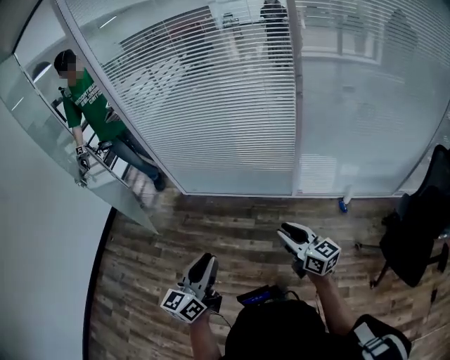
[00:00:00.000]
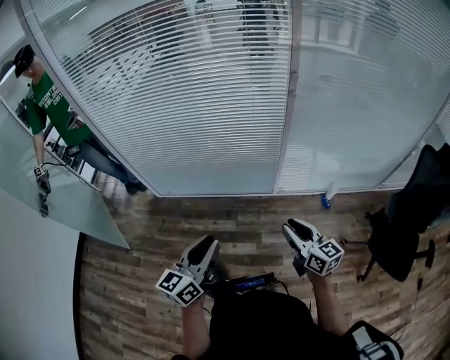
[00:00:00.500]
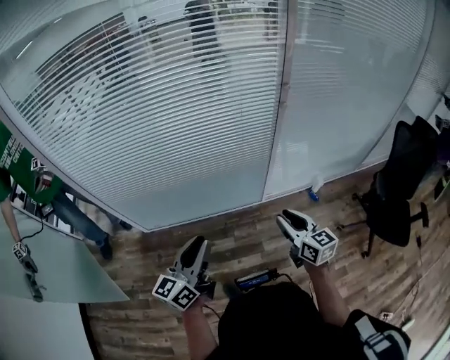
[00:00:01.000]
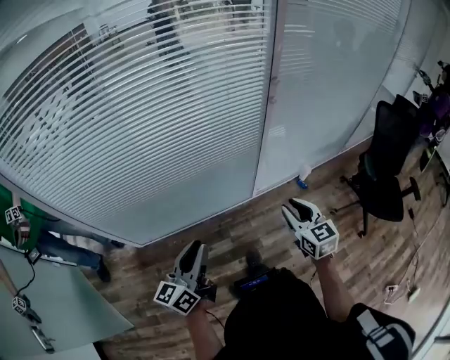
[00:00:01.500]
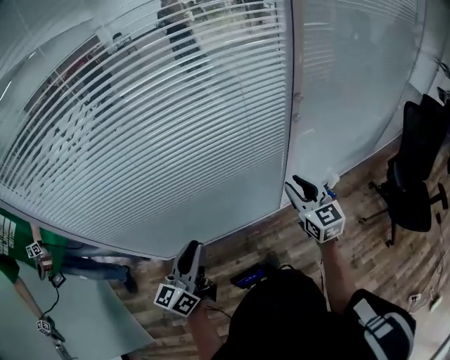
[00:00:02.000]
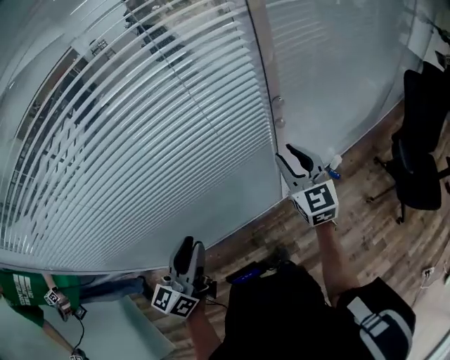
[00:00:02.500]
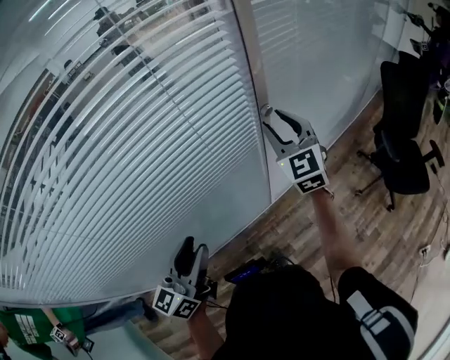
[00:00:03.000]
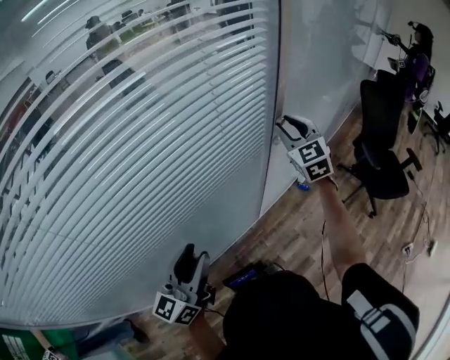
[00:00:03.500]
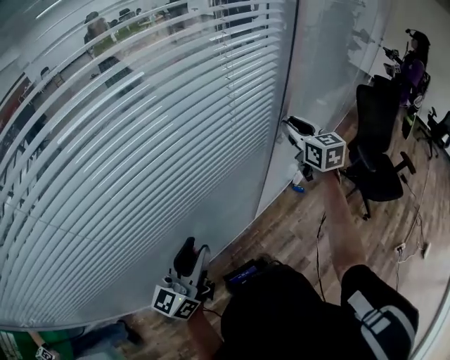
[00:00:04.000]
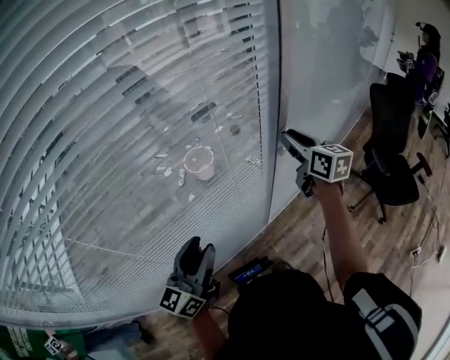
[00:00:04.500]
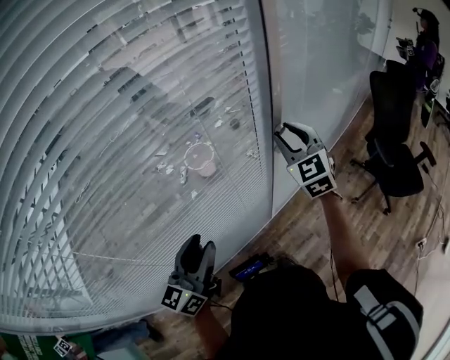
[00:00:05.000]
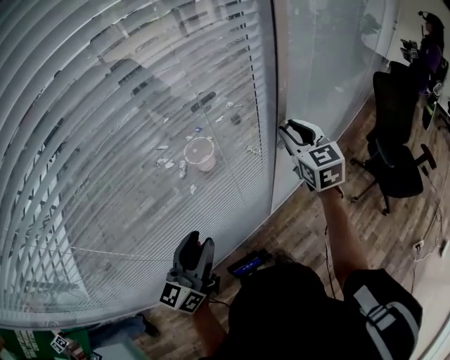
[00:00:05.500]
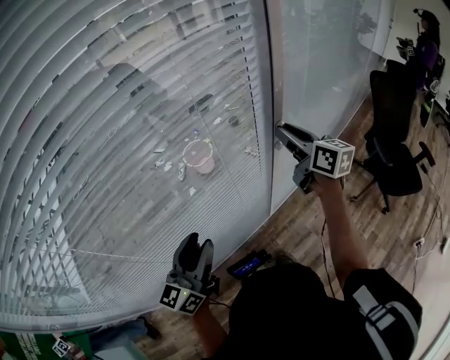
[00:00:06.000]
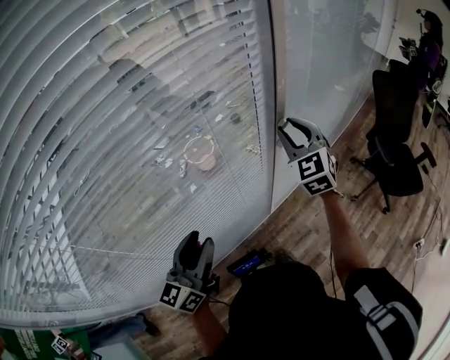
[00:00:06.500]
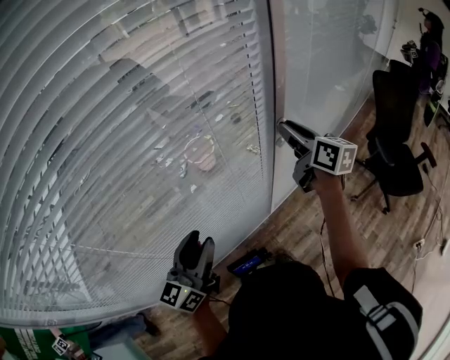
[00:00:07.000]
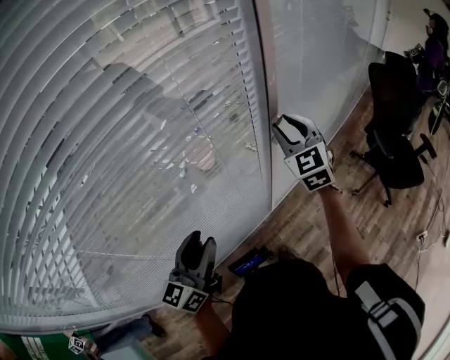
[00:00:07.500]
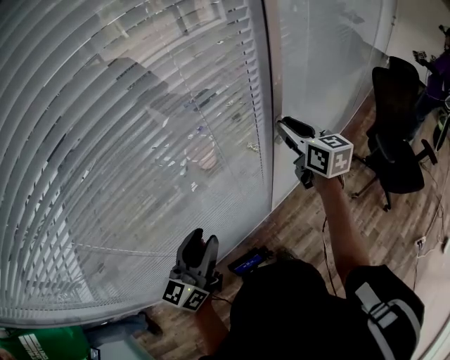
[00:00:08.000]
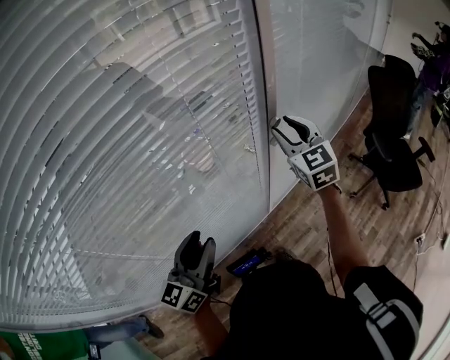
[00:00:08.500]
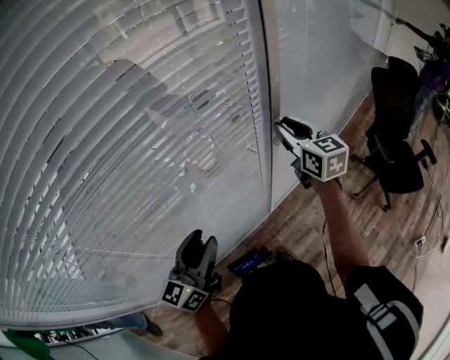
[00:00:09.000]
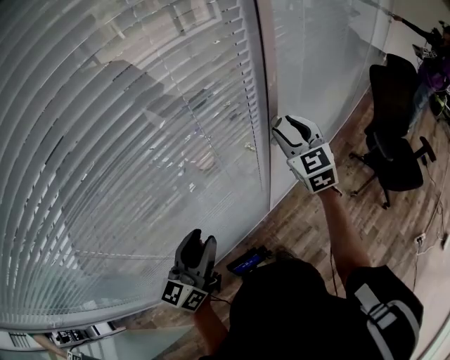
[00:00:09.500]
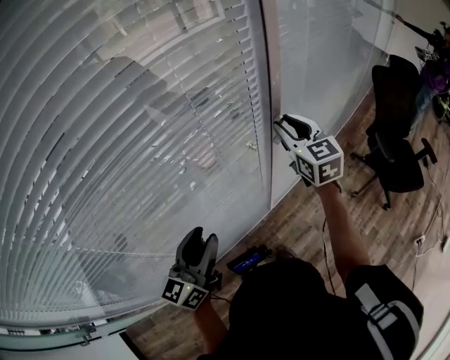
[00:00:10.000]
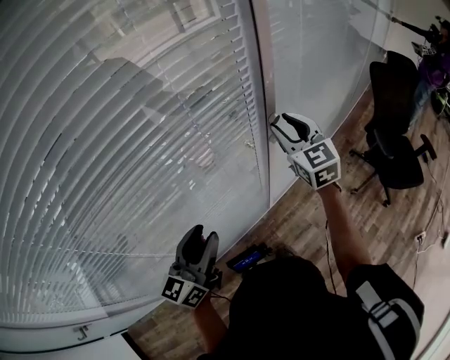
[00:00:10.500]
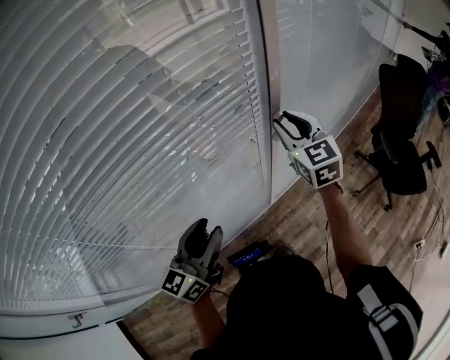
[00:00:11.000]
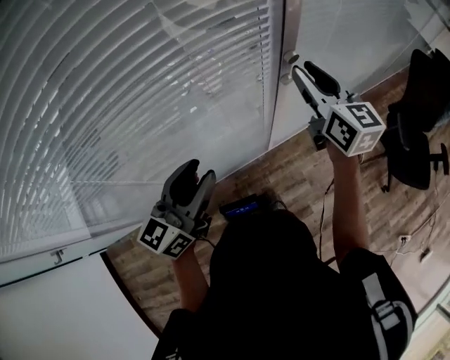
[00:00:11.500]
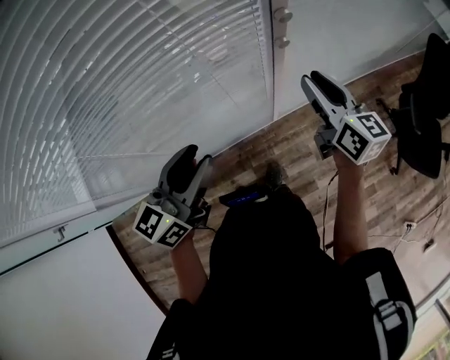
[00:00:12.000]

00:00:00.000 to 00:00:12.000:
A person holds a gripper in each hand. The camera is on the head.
00:00:00.000 to 00:00:02.000: Both grippers are carried about 50 cm. The right gripper swivels some 50 degrees; the left gripper swivels some 30 degrees.
00:00:02.000 to 00:00:04.000: The left gripper ends up approximately 15 cm from where it was, and rotates some 20 degrees; the right gripper moves some 25 cm, and turns by about 20 degrees.
00:00:04.000 to 00:00:06.000: The left gripper ends up roughly 5 cm from where it was, while the right gripper swivels roughly 30 degrees.
00:00:10.000 to 00:00:12.000: The right gripper moves downward, backward and to the right, some 15 cm, and changes its angle by some 30 degrees, while the left gripper travels to the right by roughly 10 cm.

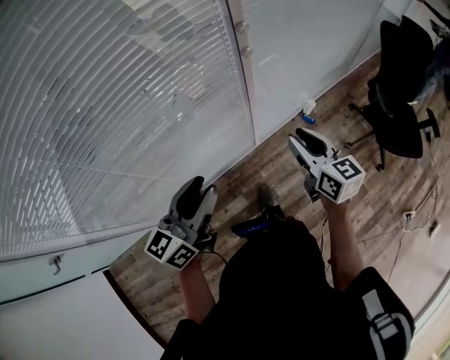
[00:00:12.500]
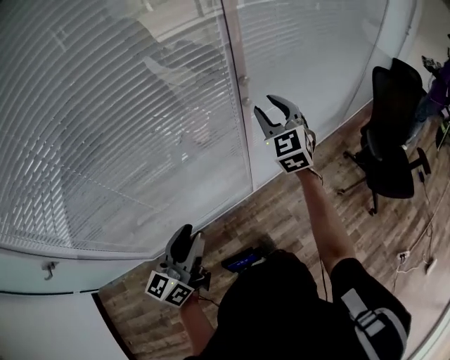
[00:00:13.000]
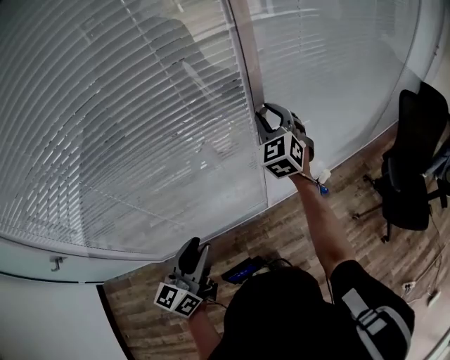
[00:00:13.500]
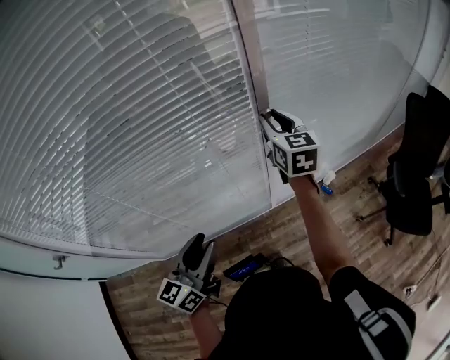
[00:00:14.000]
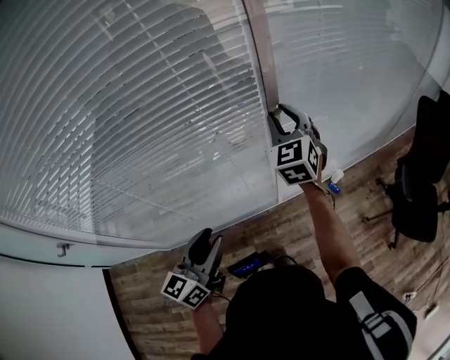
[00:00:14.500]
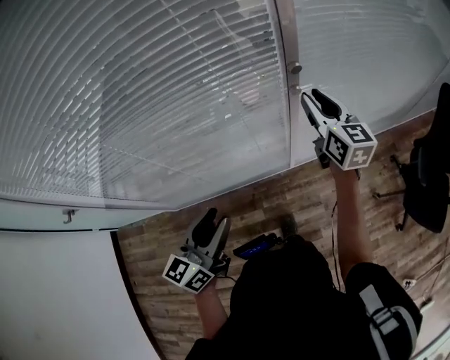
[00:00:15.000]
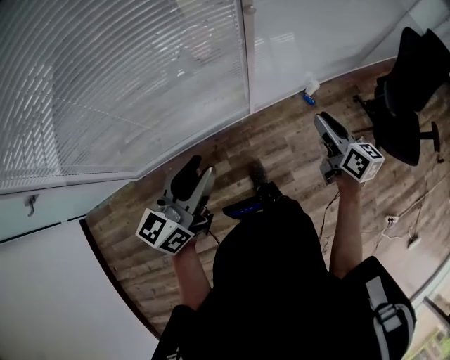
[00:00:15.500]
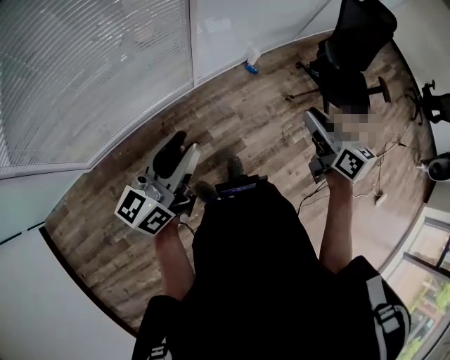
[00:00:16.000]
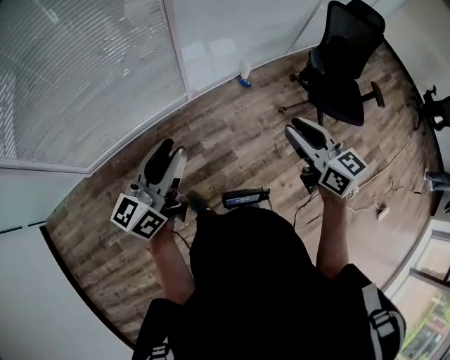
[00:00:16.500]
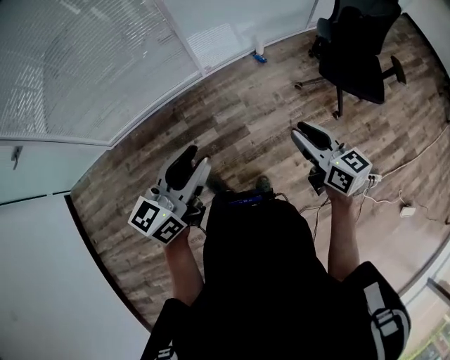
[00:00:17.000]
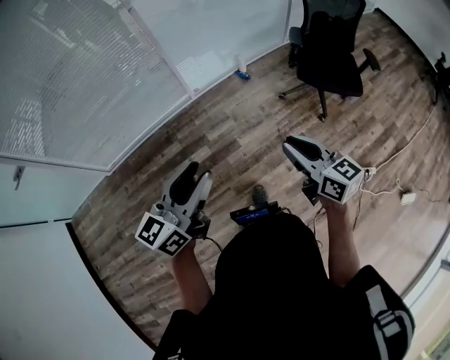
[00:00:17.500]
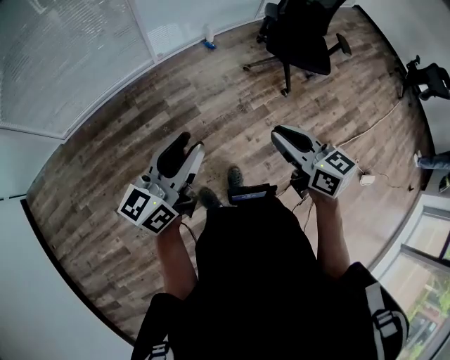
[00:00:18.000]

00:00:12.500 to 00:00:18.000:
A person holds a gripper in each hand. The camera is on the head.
00:00:12.500 to 00:00:14.500: The left gripper swivels about 20 degrees, while the right gripper heads forward and upward, covering some 25 cm, and rolls counterclockwise, seen from behind, by roughly 40 degrees.
00:00:14.500 to 00:00:16.000: The left gripper travels backward and to the right by approximately 25 cm, and turns by roughly 30 degrees; the right gripper heads backward and to the right, covering some 50 cm, and rotates around the line of its fingers by approximately 50 degrees, clockwise from behind.
00:00:16.000 to 00:00:18.000: Both grippers are carried backward and to the right, approximately 40 cm.

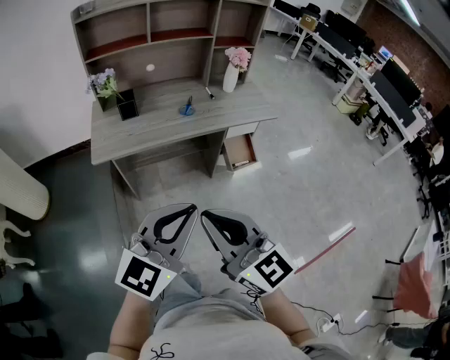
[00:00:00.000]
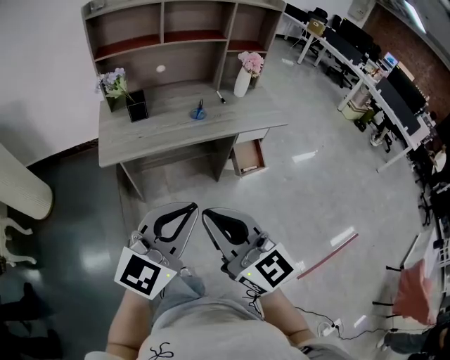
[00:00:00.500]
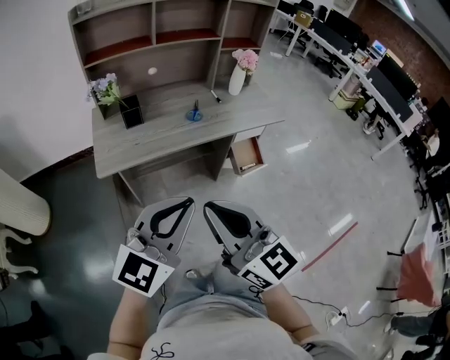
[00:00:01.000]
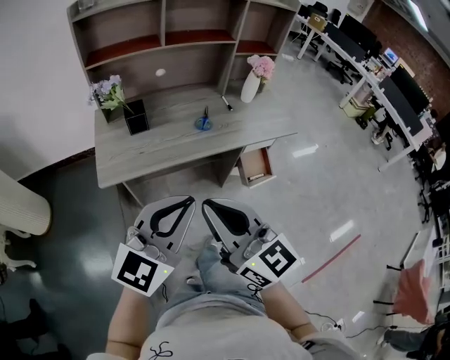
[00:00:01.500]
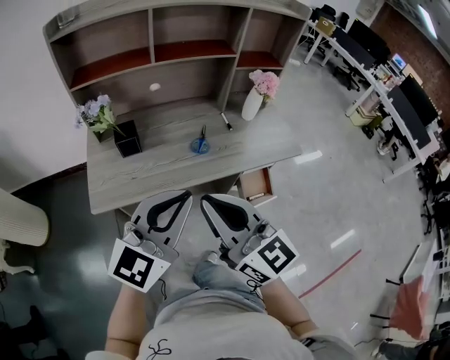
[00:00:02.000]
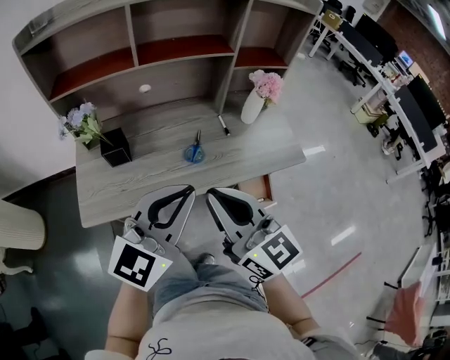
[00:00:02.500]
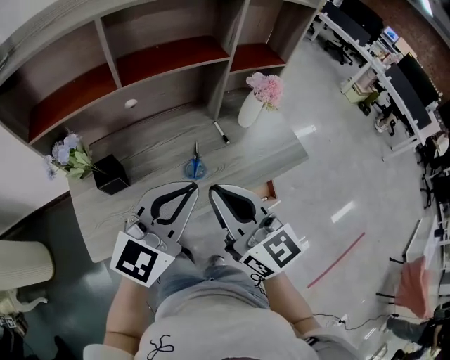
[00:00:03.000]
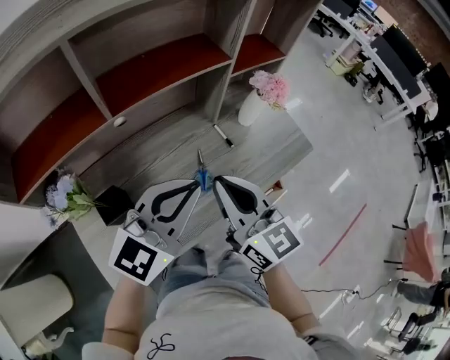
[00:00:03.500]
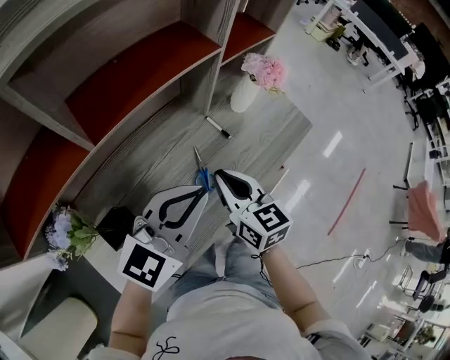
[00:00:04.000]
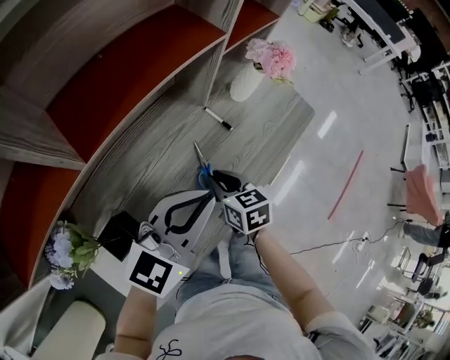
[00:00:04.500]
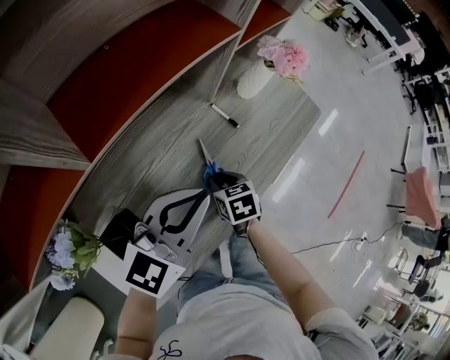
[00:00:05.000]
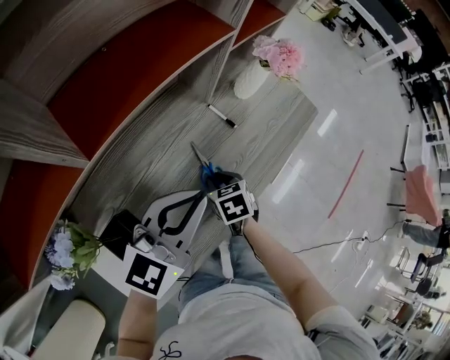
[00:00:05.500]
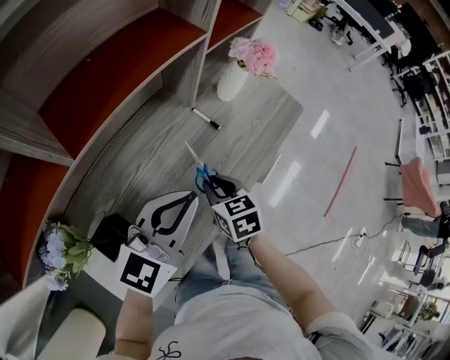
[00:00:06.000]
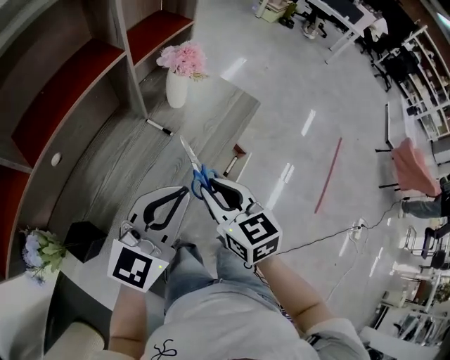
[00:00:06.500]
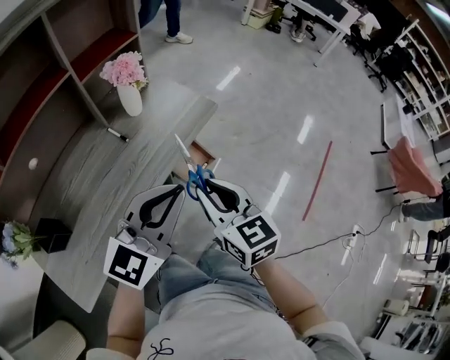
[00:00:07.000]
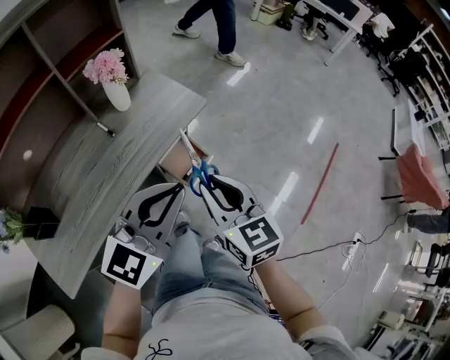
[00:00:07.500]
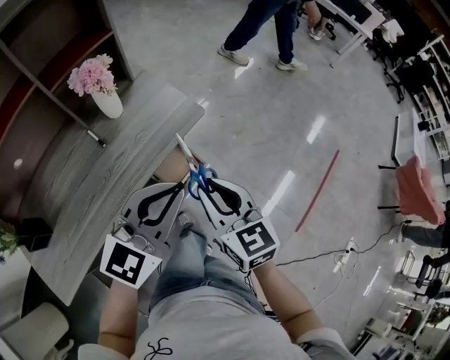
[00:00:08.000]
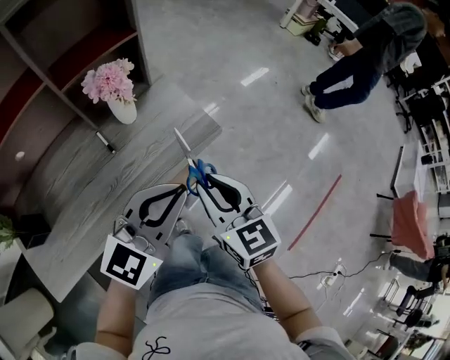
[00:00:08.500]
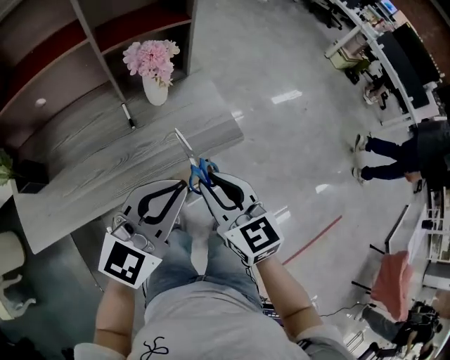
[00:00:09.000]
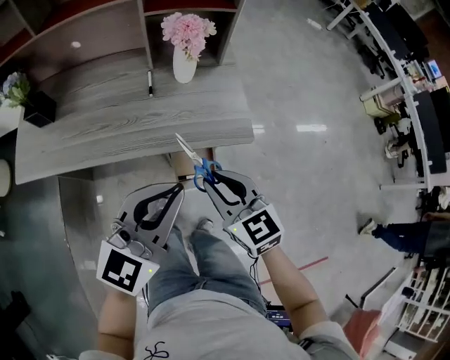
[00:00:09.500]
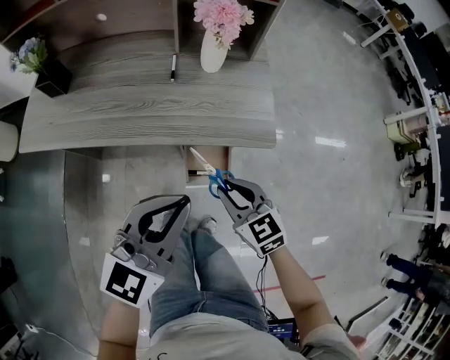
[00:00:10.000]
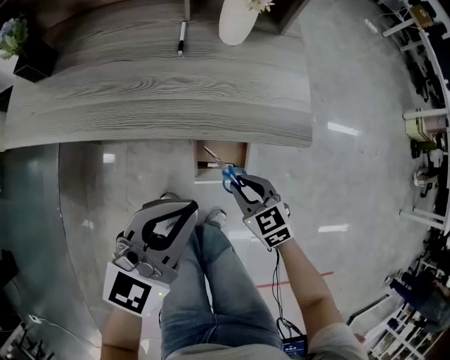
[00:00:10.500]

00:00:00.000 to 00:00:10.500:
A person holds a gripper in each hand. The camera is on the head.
00:00:00.000 to 00:00:02.000: The grippers both shift forward by roughly 30 cm.
00:00:02.000 to 00:00:04.000: The left gripper ends up roughly 30 cm from where it was, and rotates about 30 degrees. Meanwhile the right gripper moves roughly 35 cm, and swivels some 40 degrees.
00:00:04.000 to 00:00:06.500: The two grippers go some 10 cm to the right. The right gripper reaches roughly 20 cm downward, then returns.
00:00:06.500 to 00:00:08.500: Both grippers move to the right and forward, some 30 cm.
00:00:08.500 to 00:00:10.500: The left gripper travels downward by about 15 cm, and turns by roughly 50 degrees; the right gripper moves downward, roughly 30 cm, and rotates approximately 60 degrees.
